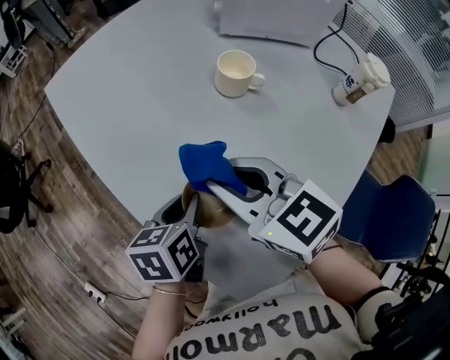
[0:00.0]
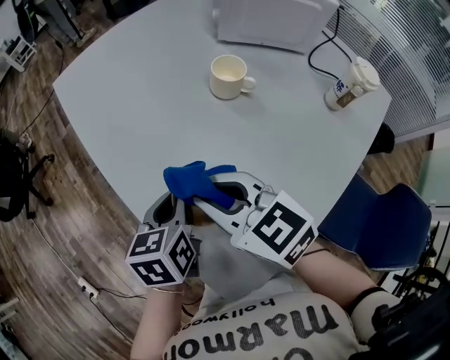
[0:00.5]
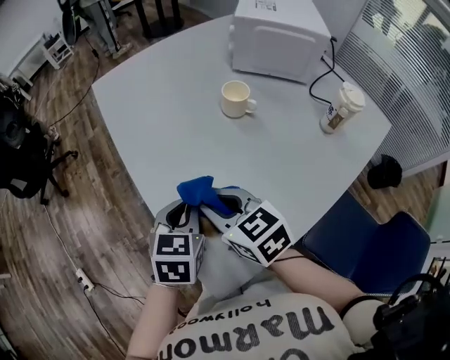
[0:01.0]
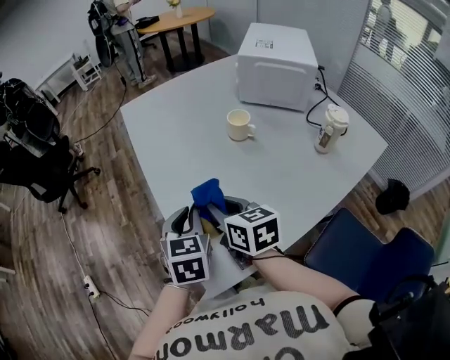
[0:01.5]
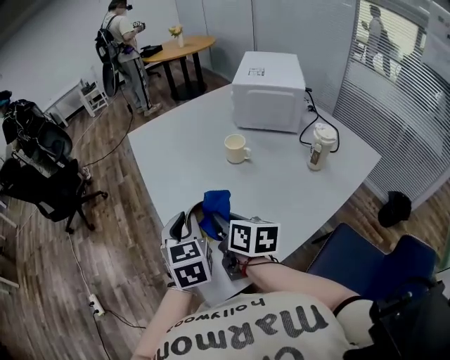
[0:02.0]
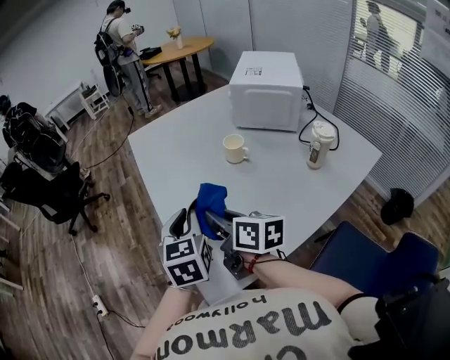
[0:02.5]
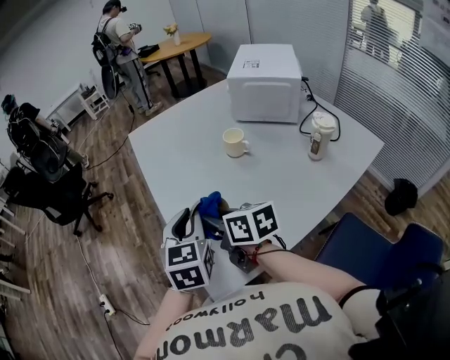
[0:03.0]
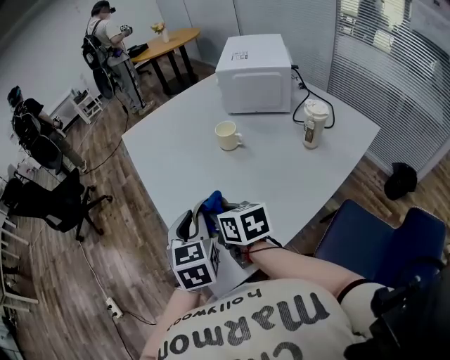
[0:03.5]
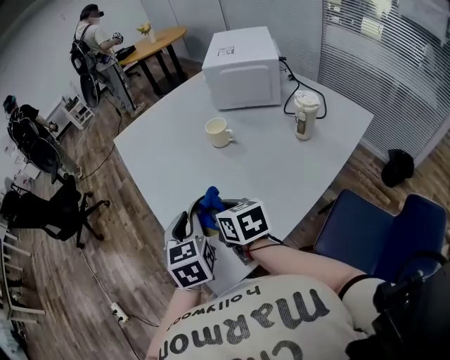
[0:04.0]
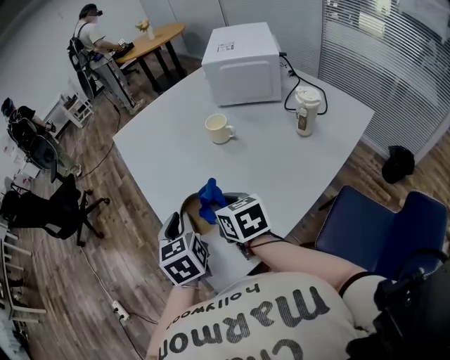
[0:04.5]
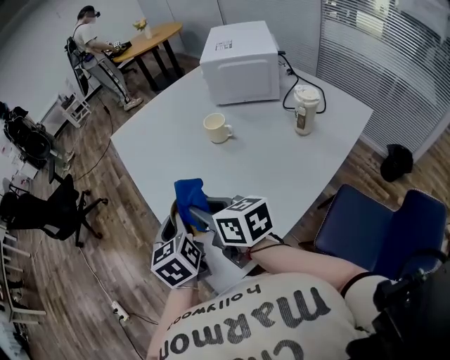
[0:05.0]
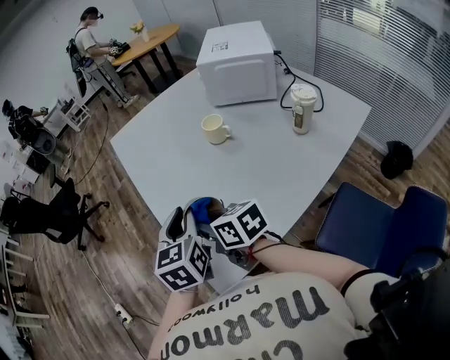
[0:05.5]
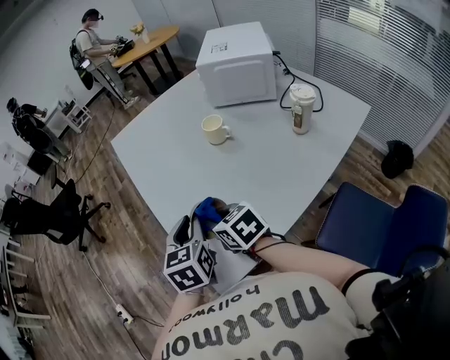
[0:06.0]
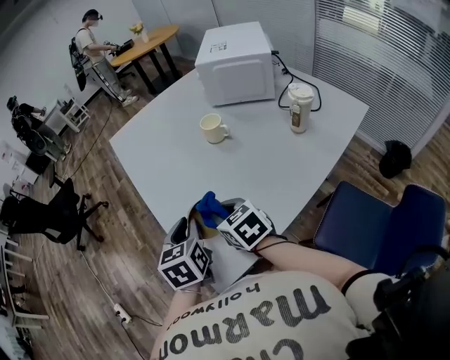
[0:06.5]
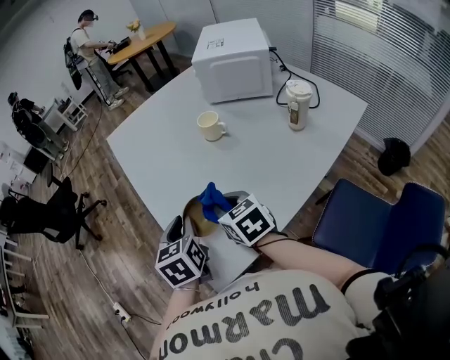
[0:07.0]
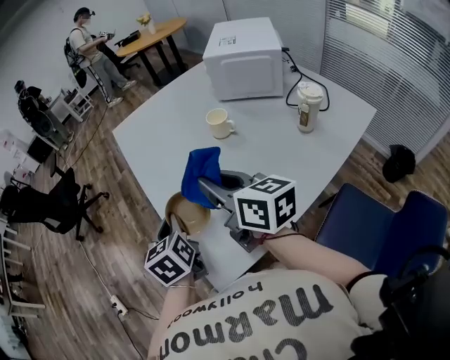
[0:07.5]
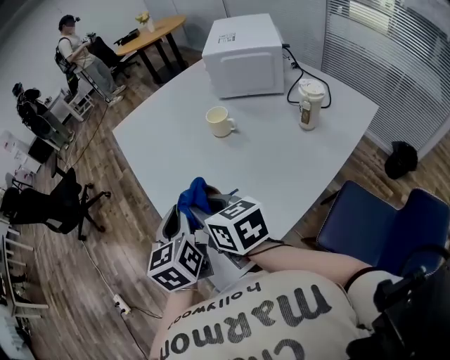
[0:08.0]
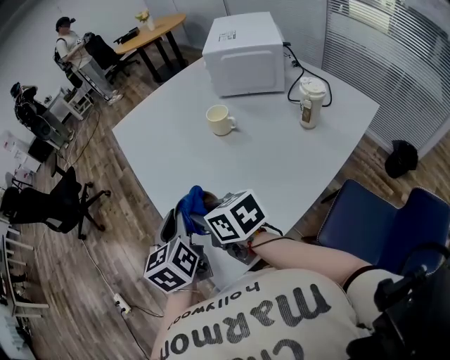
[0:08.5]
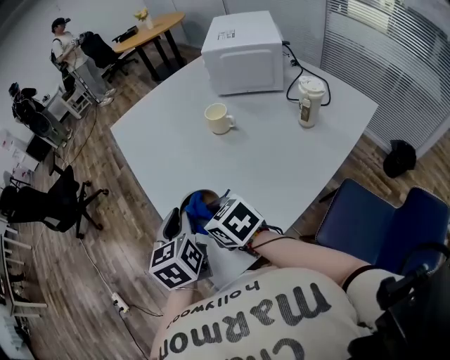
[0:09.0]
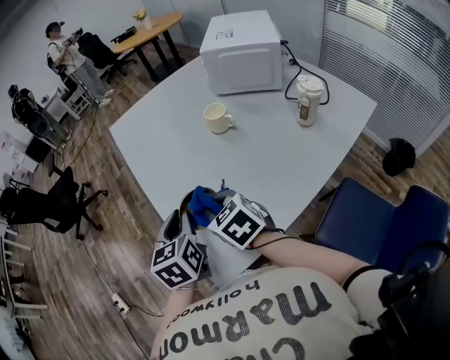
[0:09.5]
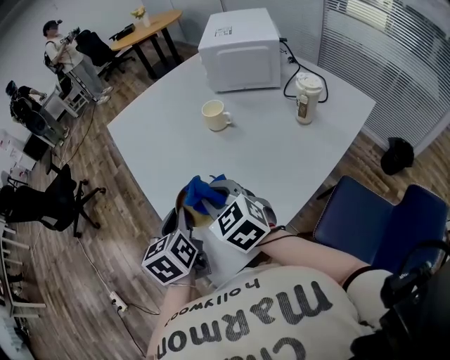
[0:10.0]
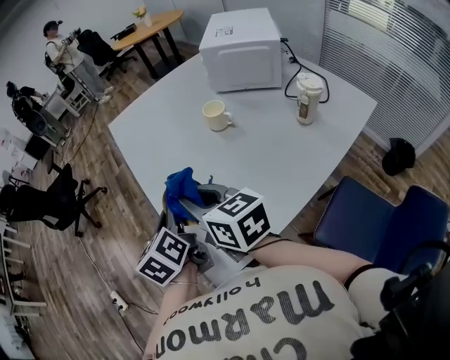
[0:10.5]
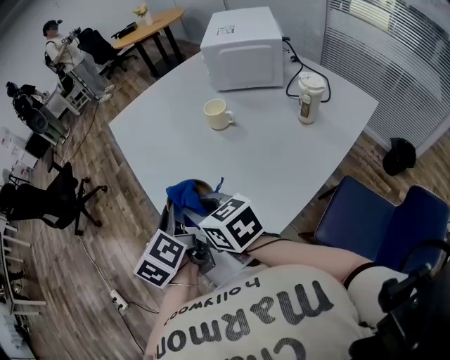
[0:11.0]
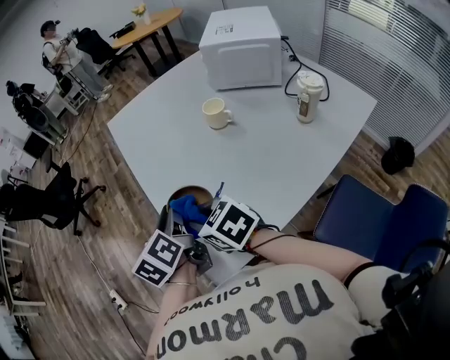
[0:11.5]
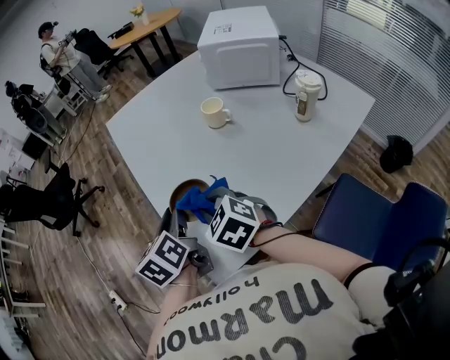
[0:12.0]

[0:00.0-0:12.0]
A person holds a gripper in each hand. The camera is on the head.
0:00.0 to 0:02.0: The left gripper moves upward and backward, some 20 cm, and swivels about 50 degrees; the right gripper shifts approximately 10 cm backward, and rotates approximately 40 degrees.
0:04.0 to 0:06.0: The right gripper moves approximately 5 cm upward and comes back.
0:06.0 to 0:08.0: The right gripper shifts roughly 10 cm upward.
0:08.0 to 0:10.0: The right gripper turns by roughly 40 degrees.
0:10.0 to 0:12.0: The right gripper goes upward and returns, some 5 cm each way.

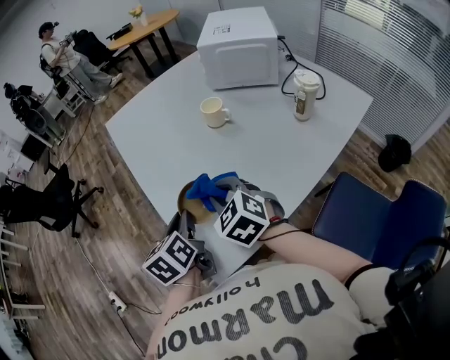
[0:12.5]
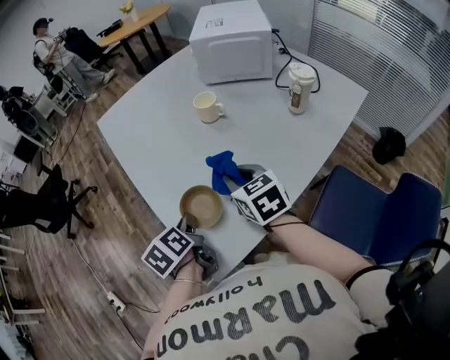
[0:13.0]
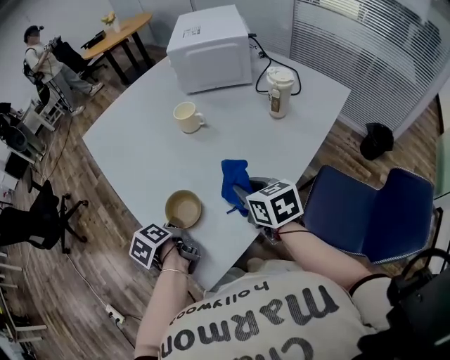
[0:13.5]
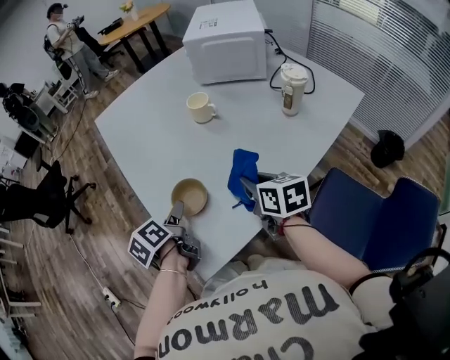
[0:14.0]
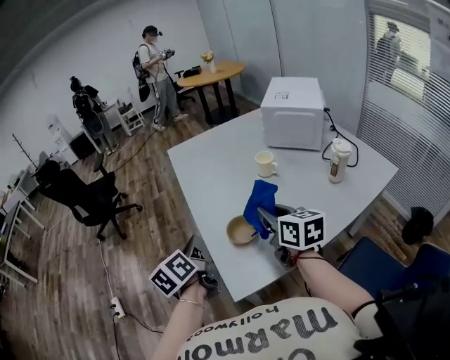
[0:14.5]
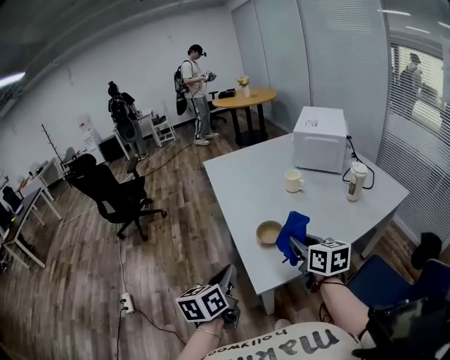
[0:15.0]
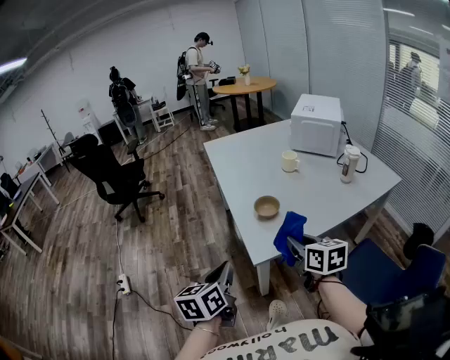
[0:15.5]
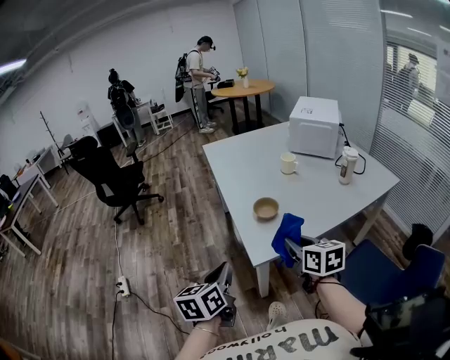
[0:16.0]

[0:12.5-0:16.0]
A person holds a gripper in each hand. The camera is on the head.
0:12.5 to 0:14.5: The left gripper moves to the left and upward, approximately 10 cm, turns by some 20 degrees, and opens, then closes again. Meanwhile the right gripper travels upward by approximately 10 cm, moves about 15 cm to the right and comes back, and rotates some 40 degrees.
0:14.5 to 0:16.0: Both grippers move backward, roughly 25 cm.

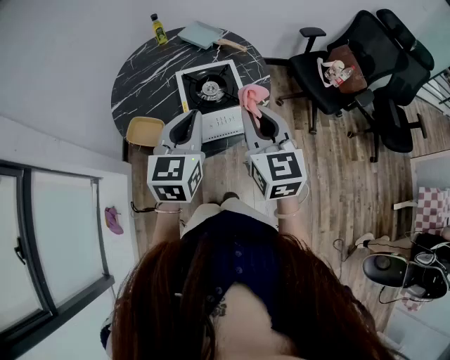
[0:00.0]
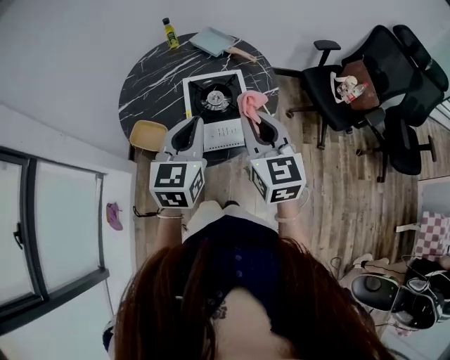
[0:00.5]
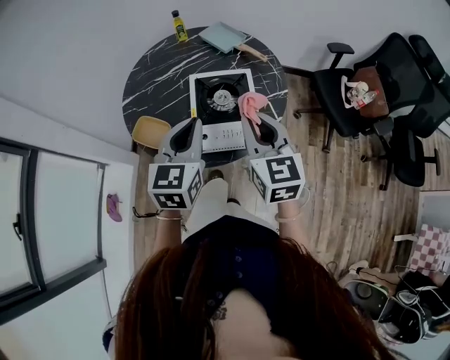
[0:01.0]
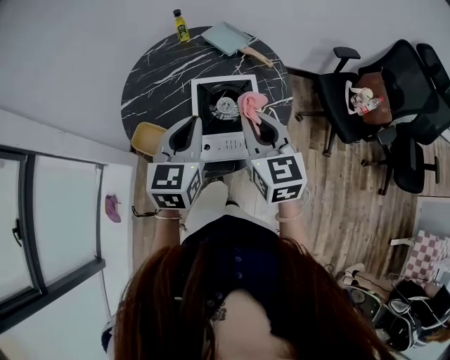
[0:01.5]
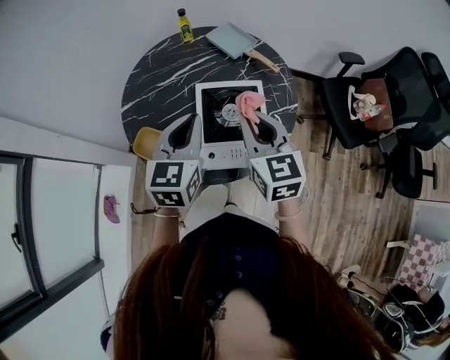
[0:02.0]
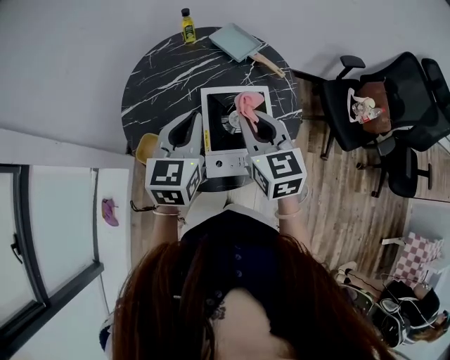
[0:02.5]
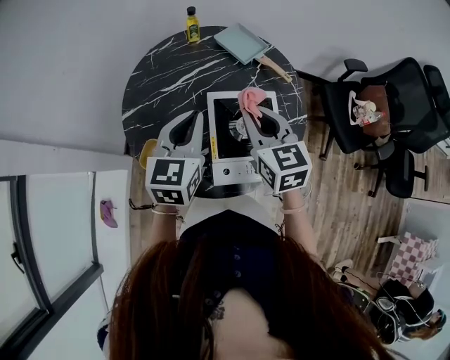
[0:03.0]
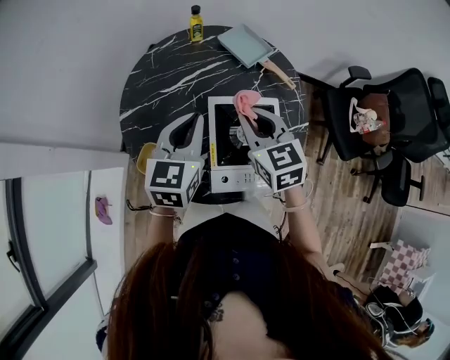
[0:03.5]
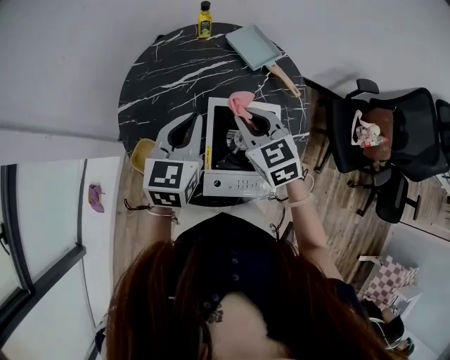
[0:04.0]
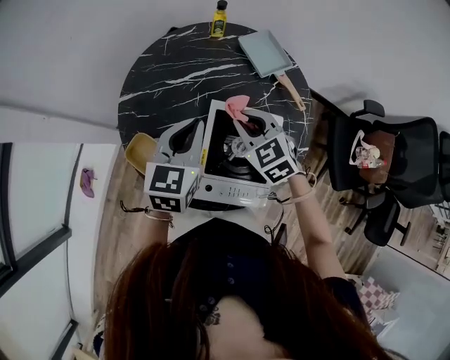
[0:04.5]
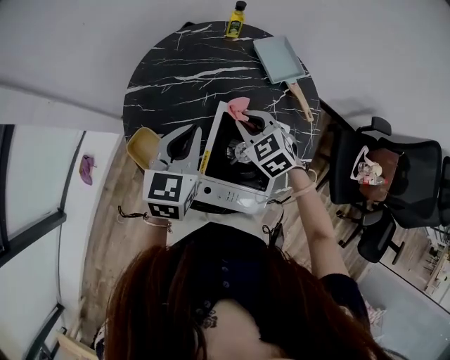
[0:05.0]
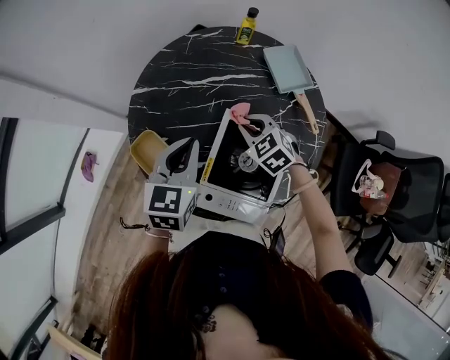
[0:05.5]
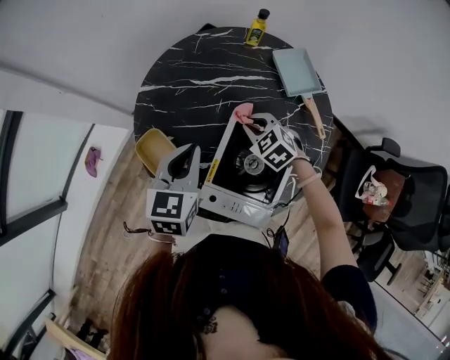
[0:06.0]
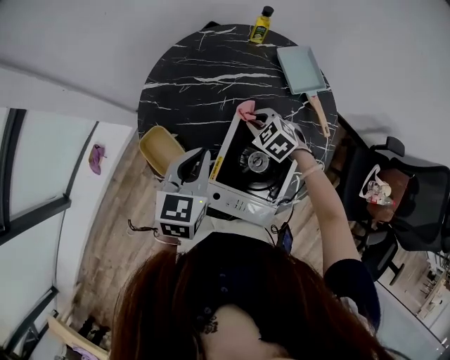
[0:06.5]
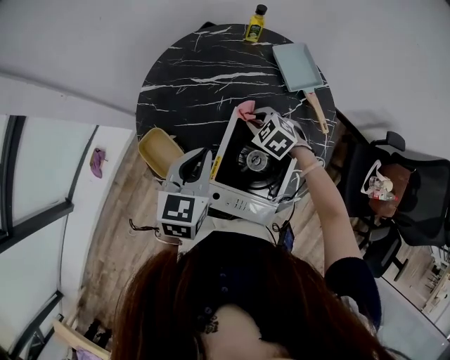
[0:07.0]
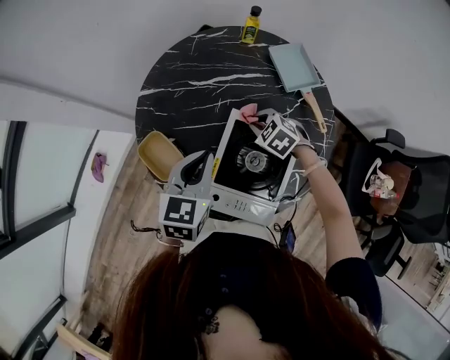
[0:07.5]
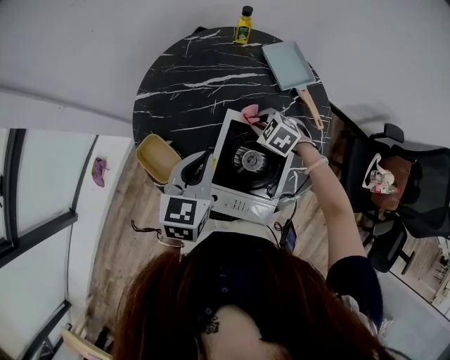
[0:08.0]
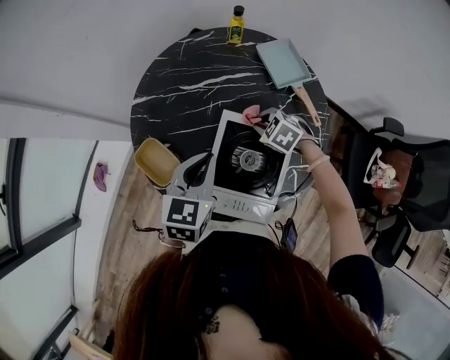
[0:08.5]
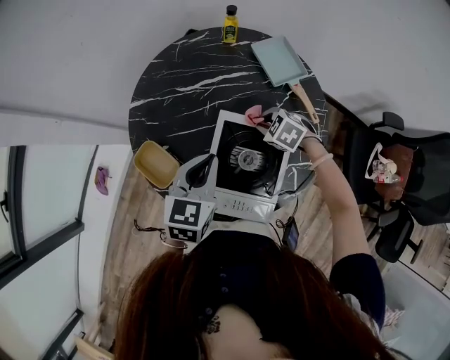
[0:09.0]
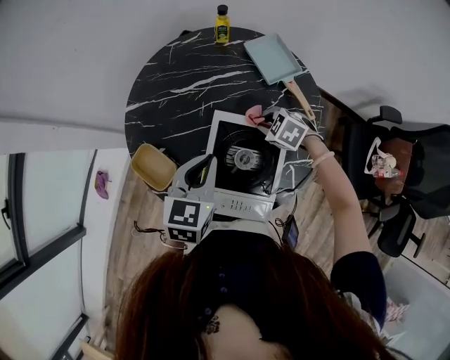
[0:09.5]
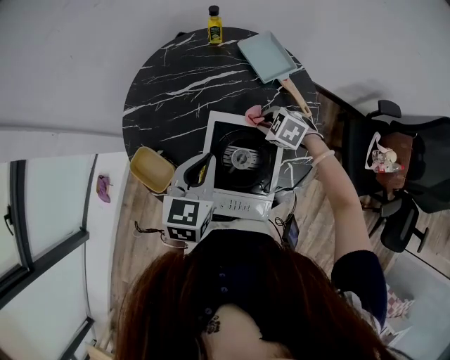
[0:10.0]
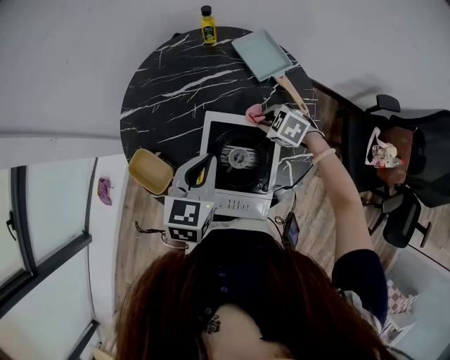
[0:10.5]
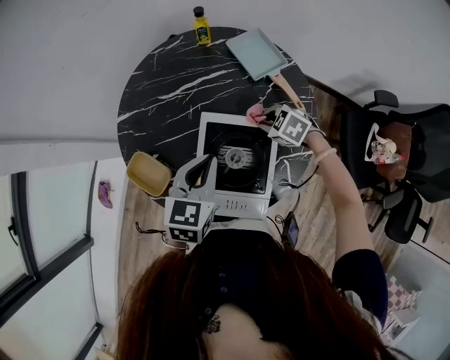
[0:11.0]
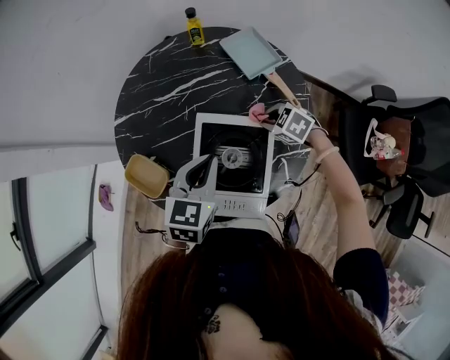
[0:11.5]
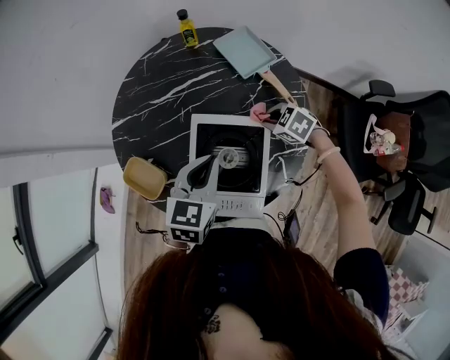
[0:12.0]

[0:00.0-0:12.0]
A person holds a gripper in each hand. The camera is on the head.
0:00.0 to 0:02.0: Both grippers move forward, approximately 15 cm.
0:02.0 to 0:04.0: The left gripper moves forward and to the left, roughly 15 cm. Meanwhile the right gripper moves forward, downward and to the left, about 20 cm, and turns by about 30 degrees.
0:04.0 to 0:06.0: The left gripper shifts roughly 5 cm downward, and changes its angle by approximately 20 degrees; the right gripper shifts approximately 15 cm downward and forward, and rotates roughly 40 degrees.
0:06.0 to 0:08.0: The right gripper shifts by about 5 cm; the left gripper moves about 5 cm.
0:08.0 to 0:10.0: The right gripper heads to the right, covering about 5 cm.
0:10.0 to 0:12.0: The two grippers go roughly 5 cm to the right.
